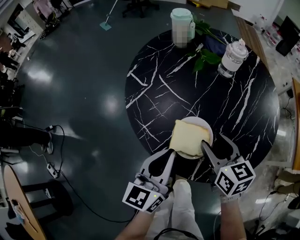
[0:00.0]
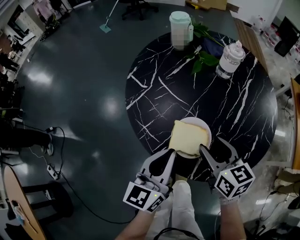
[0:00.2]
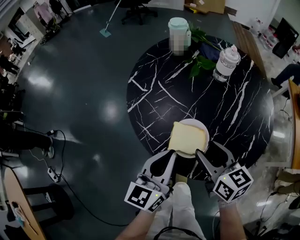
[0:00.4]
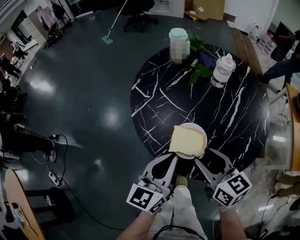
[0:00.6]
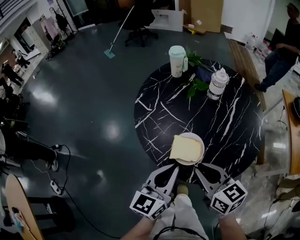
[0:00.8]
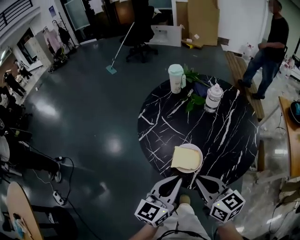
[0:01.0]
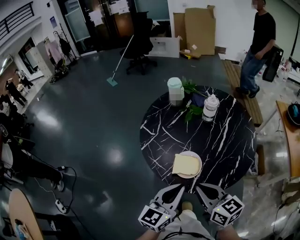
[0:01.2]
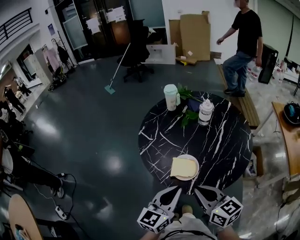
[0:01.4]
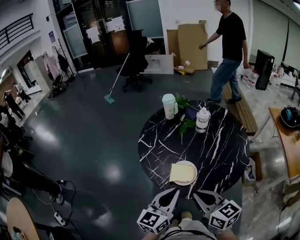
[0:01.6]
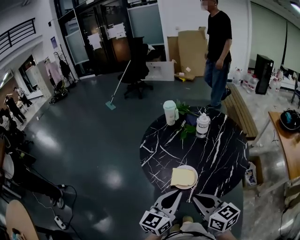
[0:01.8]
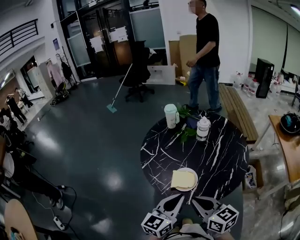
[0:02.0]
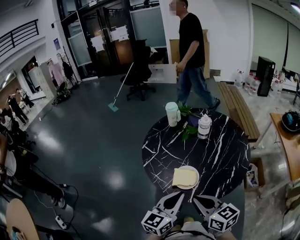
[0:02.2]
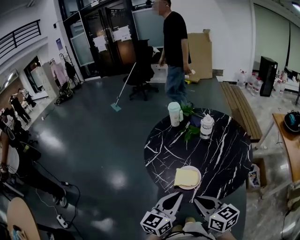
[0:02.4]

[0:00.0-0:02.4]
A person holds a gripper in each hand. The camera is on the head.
0:00.0 to 0:01.2: Both grippers move upward and backward, about 15 cm. The right gripper closes up.
0:01.2 to 0:02.4: There are only small adjustments of the grippers.

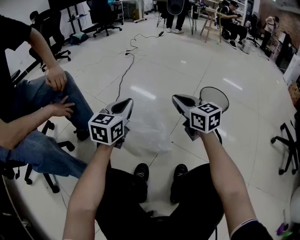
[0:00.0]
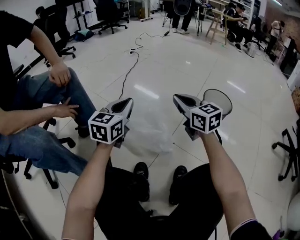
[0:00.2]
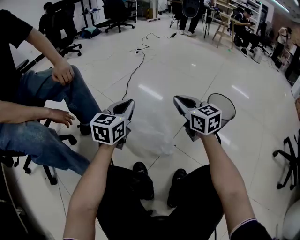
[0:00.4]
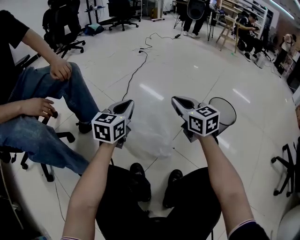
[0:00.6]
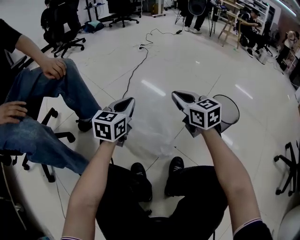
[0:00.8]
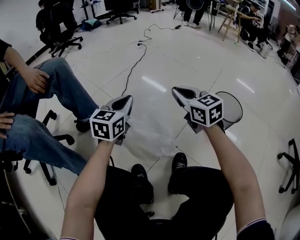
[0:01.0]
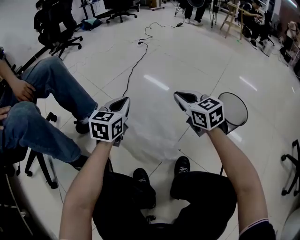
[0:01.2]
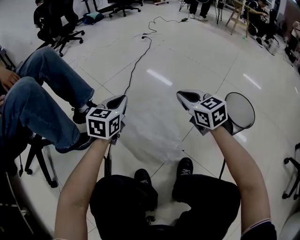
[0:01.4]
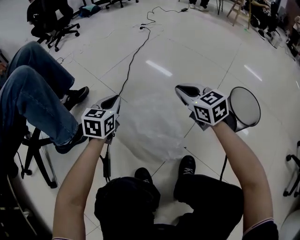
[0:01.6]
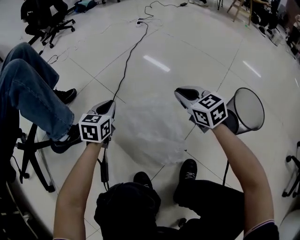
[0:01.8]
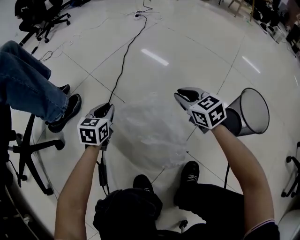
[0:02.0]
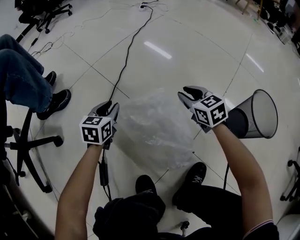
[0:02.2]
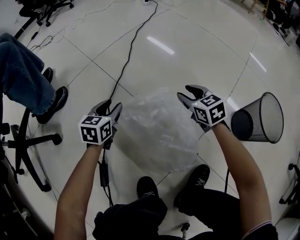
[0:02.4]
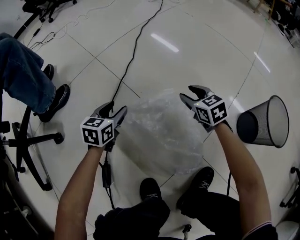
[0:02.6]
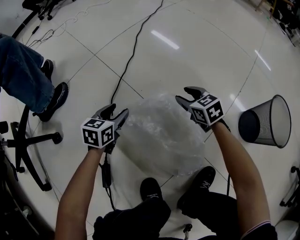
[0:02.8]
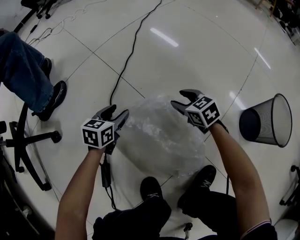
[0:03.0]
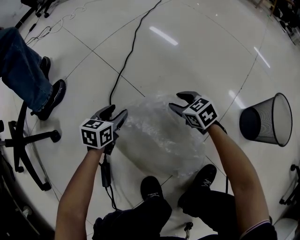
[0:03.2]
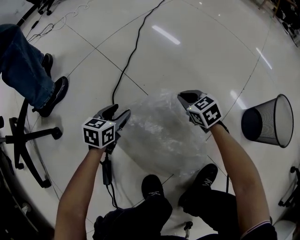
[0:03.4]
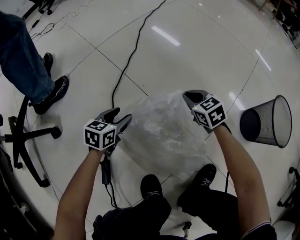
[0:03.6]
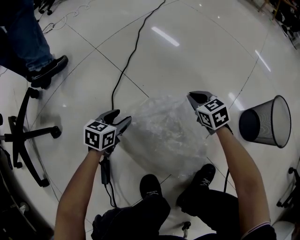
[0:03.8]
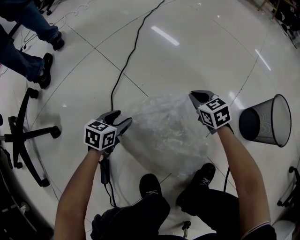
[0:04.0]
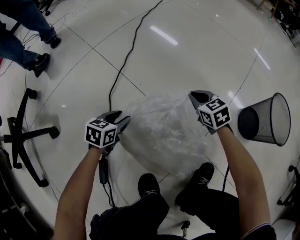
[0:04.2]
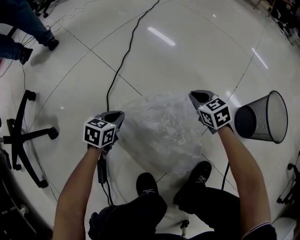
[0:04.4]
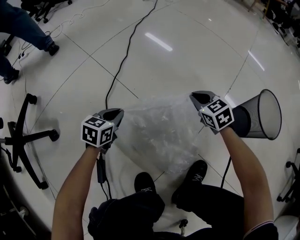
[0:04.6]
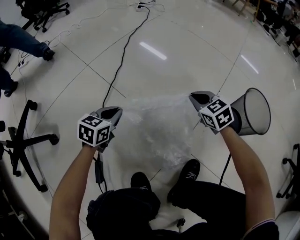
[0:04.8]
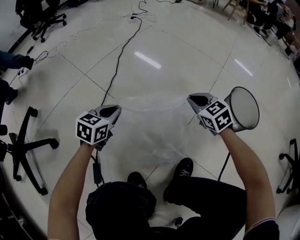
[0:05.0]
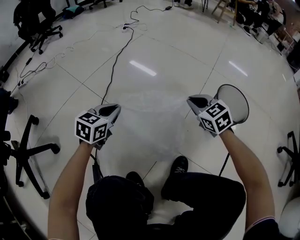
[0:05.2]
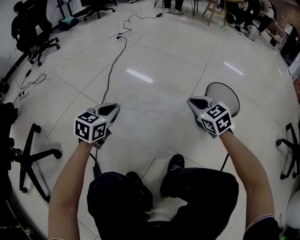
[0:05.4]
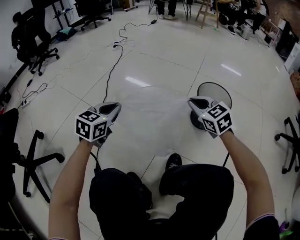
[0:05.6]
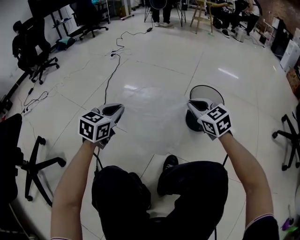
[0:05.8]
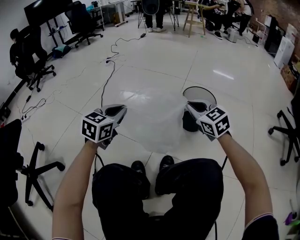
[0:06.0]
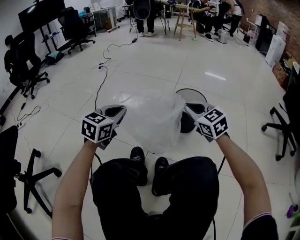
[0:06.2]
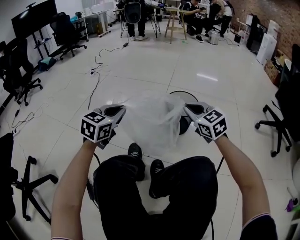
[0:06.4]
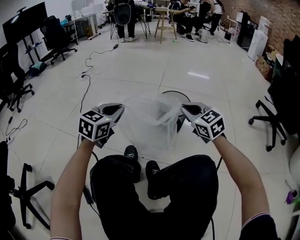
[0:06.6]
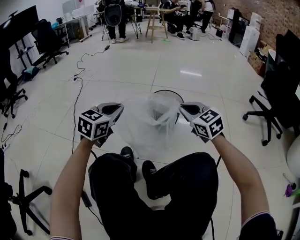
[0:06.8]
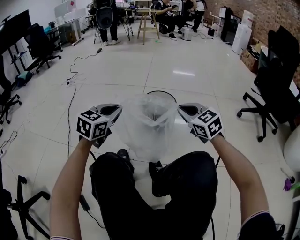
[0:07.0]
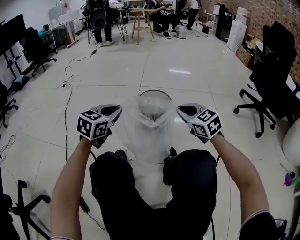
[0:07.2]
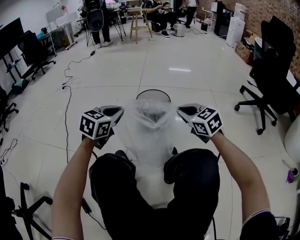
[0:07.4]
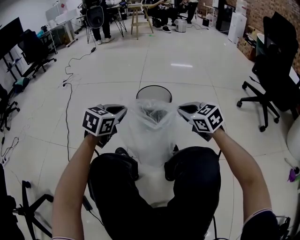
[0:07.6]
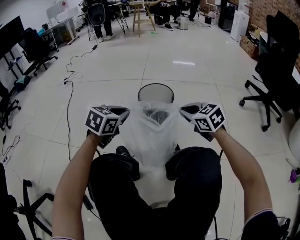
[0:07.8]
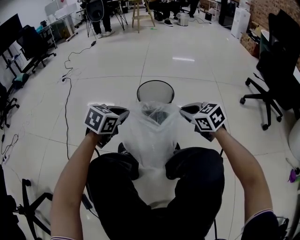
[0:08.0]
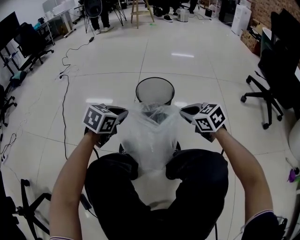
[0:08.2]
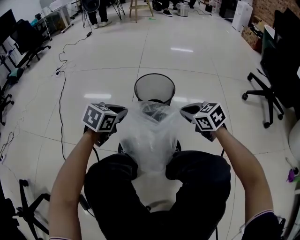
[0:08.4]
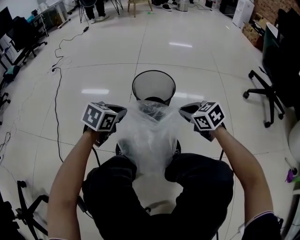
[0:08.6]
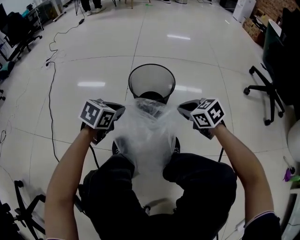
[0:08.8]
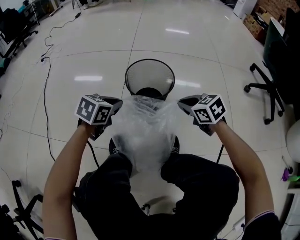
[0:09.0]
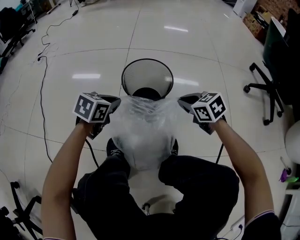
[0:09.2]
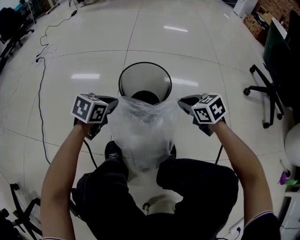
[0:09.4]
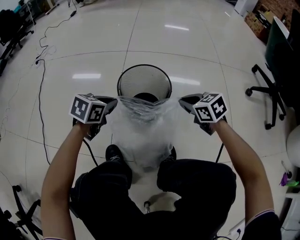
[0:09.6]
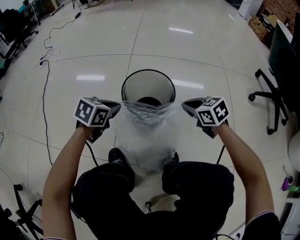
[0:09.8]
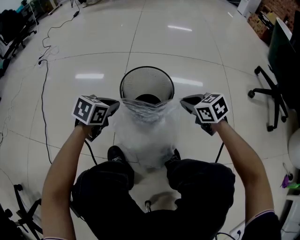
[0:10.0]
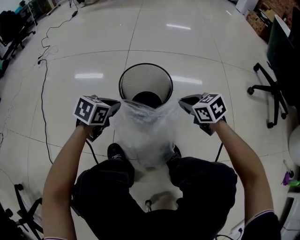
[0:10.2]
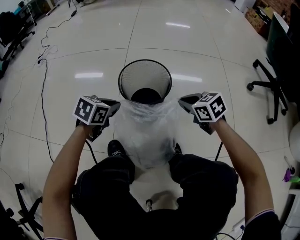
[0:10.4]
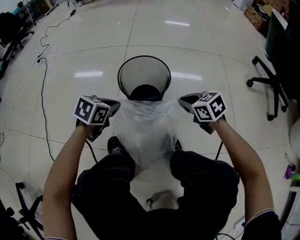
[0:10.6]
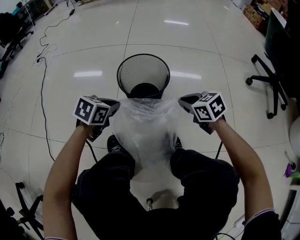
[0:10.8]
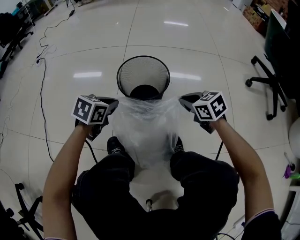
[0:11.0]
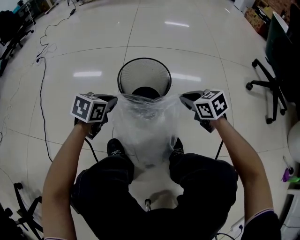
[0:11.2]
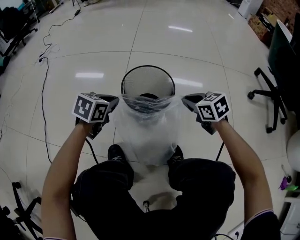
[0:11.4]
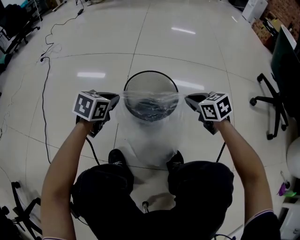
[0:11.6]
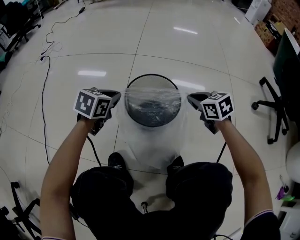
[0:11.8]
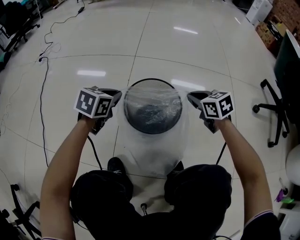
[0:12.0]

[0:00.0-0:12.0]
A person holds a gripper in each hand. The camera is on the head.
0:00.0 to 0:01.6: The left gripper is displaced forward, downward and to the left by some 25 cm, and rotates about 20 degrees; the right gripper is displaced forward and downward by approximately 20 cm.
0:01.6 to 0:03.0: Both grippers travel together downward, approximately 25 cm. The left gripper turns by roughly 20 degrees, and opens up. The right gripper rotates roughly 20 degrees, and opens.
0:03.0 to 0:04.4: The right gripper travels to the right by roughly 10 cm, and closes; the left gripper closes up.
0:04.4 to 0:06.0: The left gripper is displaced upward and to the right by approximately 40 cm, and swivels some 40 degrees. The right gripper goes approximately 40 cm upward, to the right and backward, and swivels about 30 degrees.
0:06.0 to 0:07.6: The grippers both shift to the right by about 20 cm. The left gripper rotates some 20 degrees.
0:07.6 to 0:09.0: Both grippers move downward and forward, approximately 20 cm.
0:10.4 to 0:12.0: Both grippers travel together forward, approximately 15 cm.

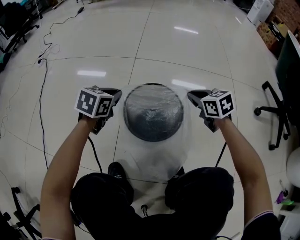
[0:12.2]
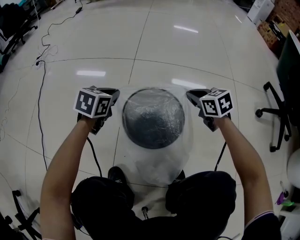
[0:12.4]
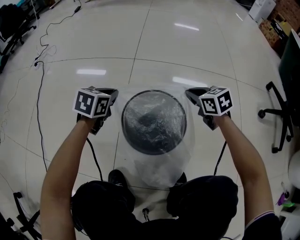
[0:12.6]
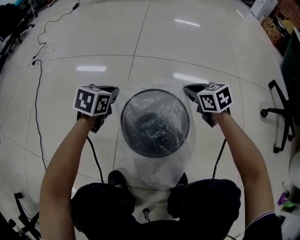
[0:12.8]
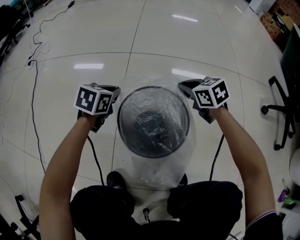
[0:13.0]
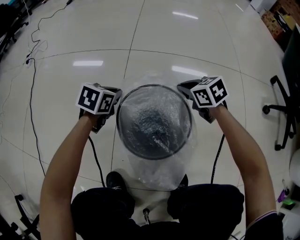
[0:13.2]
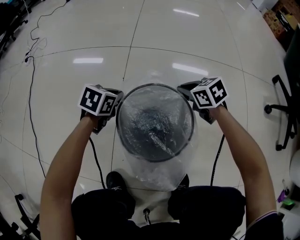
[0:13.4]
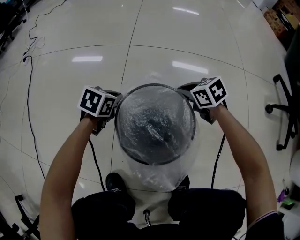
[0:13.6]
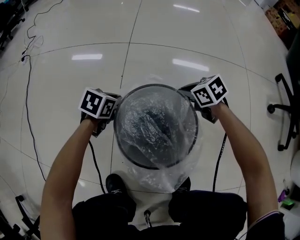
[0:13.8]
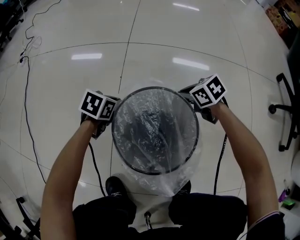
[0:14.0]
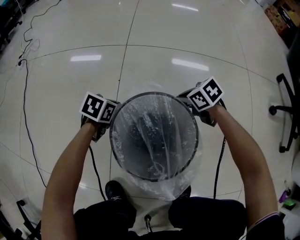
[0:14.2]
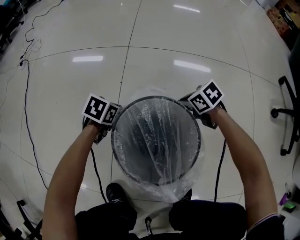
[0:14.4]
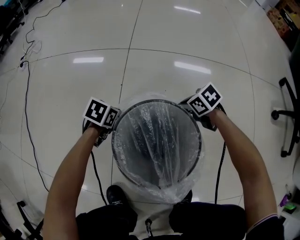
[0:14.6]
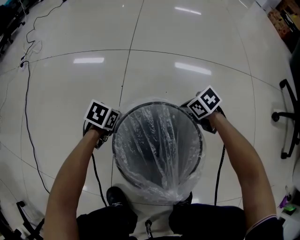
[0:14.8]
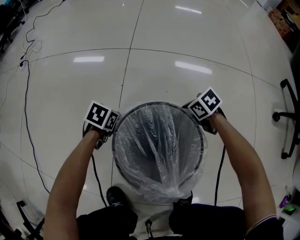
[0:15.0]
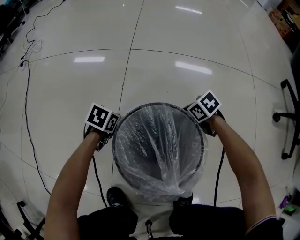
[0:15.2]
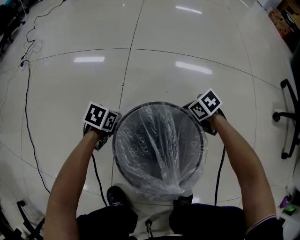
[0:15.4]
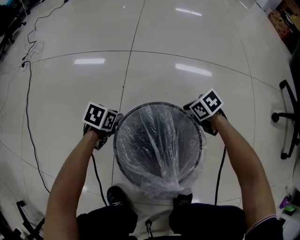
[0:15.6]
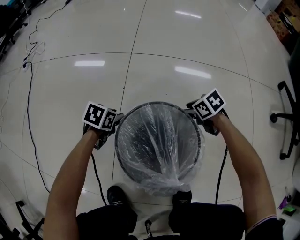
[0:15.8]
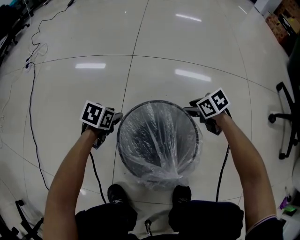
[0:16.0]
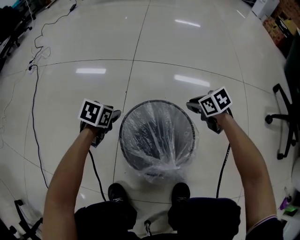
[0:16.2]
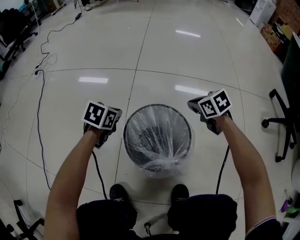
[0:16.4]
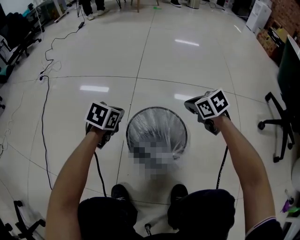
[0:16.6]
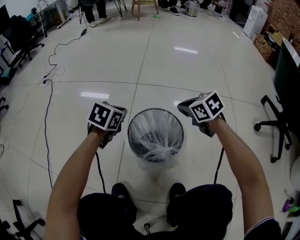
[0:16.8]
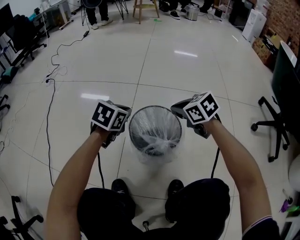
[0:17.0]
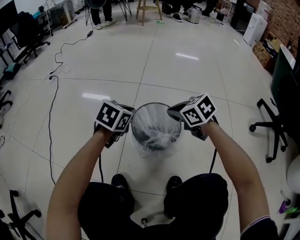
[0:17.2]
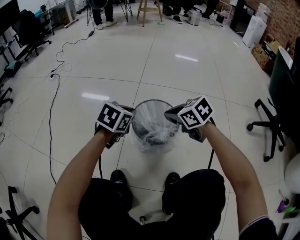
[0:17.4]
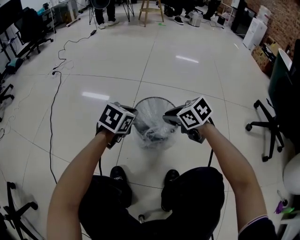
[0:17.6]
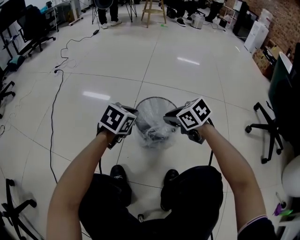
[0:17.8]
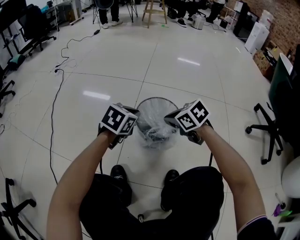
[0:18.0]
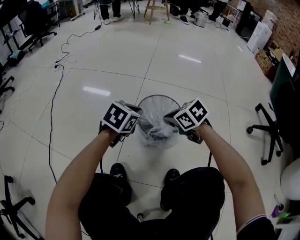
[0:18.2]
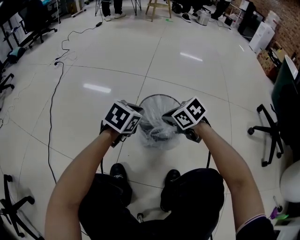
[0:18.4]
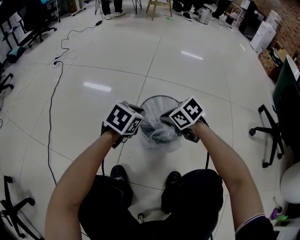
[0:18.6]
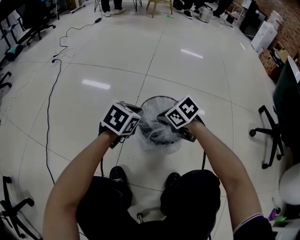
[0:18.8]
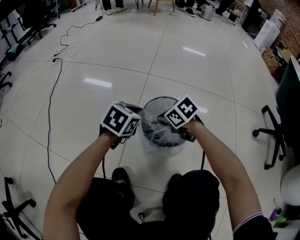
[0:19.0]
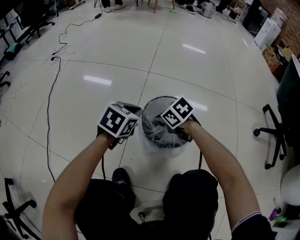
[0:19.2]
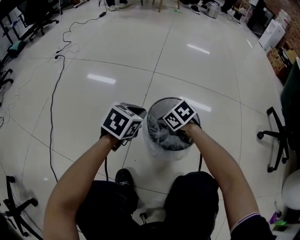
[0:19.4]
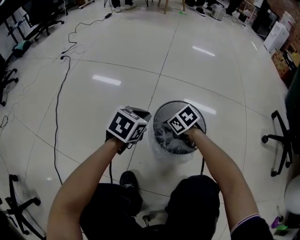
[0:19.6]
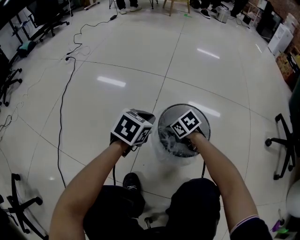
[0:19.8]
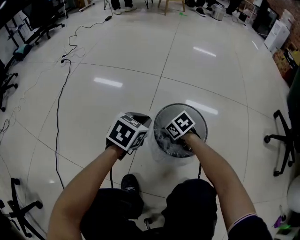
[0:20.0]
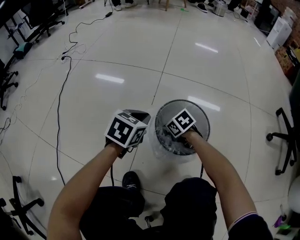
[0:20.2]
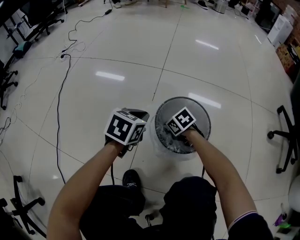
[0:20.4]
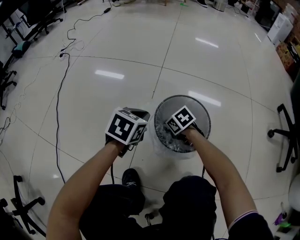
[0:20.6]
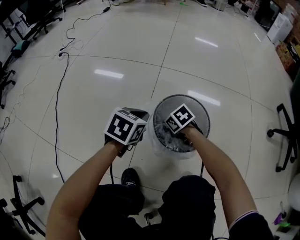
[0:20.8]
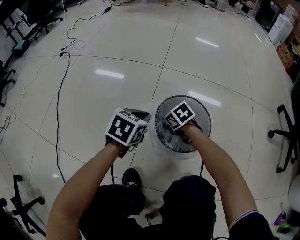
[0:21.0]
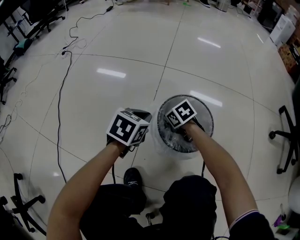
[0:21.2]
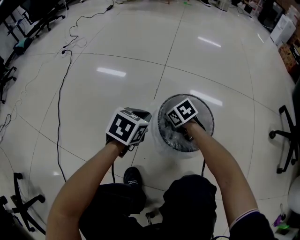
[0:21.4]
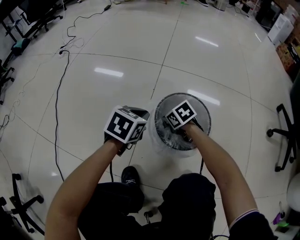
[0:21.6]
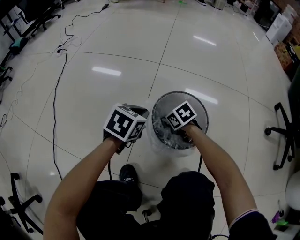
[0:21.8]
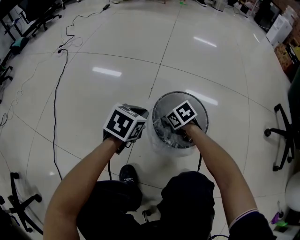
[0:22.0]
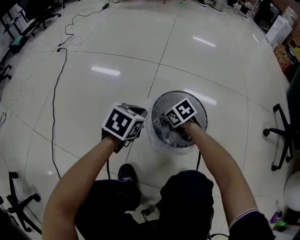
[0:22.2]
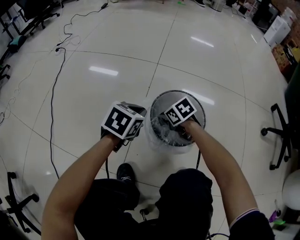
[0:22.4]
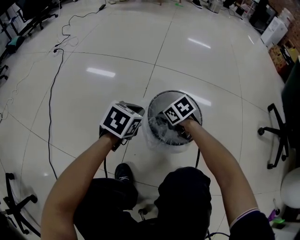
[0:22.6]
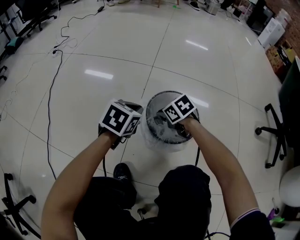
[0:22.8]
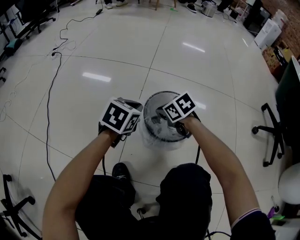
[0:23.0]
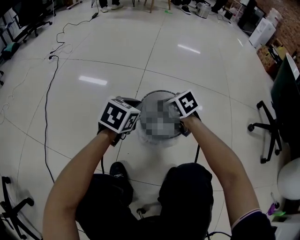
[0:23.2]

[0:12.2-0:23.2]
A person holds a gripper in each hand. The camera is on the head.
0:12.2 to 0:13.8: The right gripper moves downward and forward, roughly 15 cm, while the left gripper travels downward by some 15 cm.
0:13.8 to 0:15.4: Both grippers move downward, about 10 cm.
0:15.4 to 0:17.0: The grippers both shift upward by some 30 cm. The left gripper swivels roughly 30 degrees, and opens, then closes once more. Meanwhile the right gripper rotates about 30 degrees, and opens, then closes again.
0:17.0 to 0:18.4: The right gripper heads to the left and backward, covering about 10 cm; the left gripper moves backward, about 10 cm.
0:18.4 to 0:20.0: The left gripper shifts by about 5 cm. The right gripper shifts approximately 15 cm downward and forward.
0:20.0 to 0:21.6: There are only small adjustments of the grippers.
0:21.6 to 0:23.2: The left gripper moves upward, about 5 cm, while the right gripper is displaced upward by some 15 cm.
